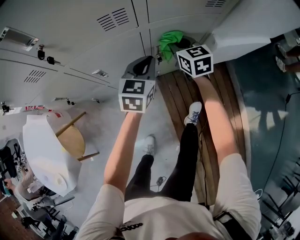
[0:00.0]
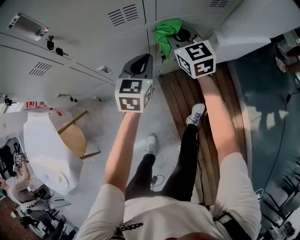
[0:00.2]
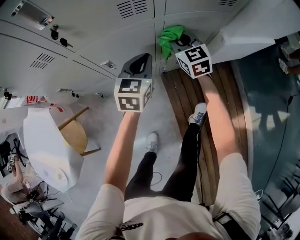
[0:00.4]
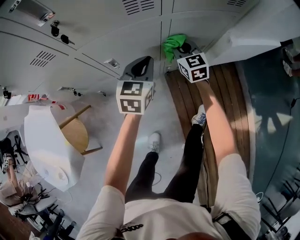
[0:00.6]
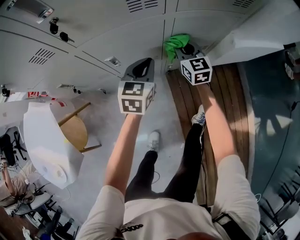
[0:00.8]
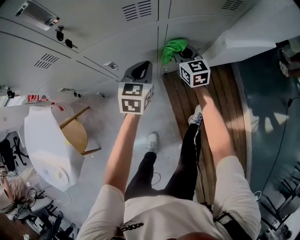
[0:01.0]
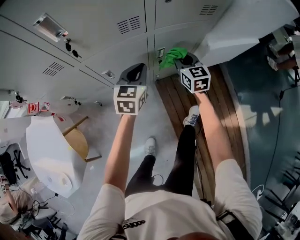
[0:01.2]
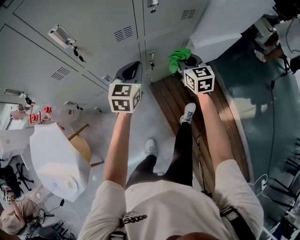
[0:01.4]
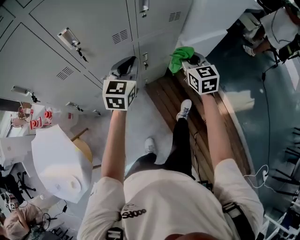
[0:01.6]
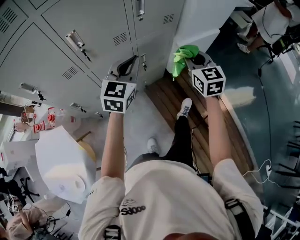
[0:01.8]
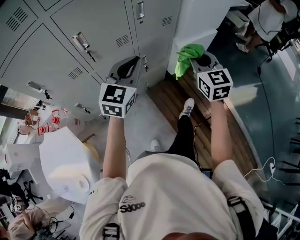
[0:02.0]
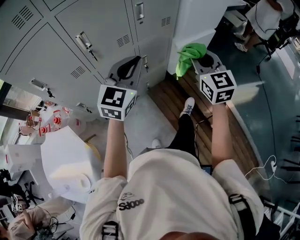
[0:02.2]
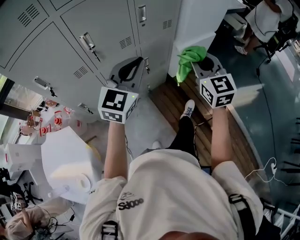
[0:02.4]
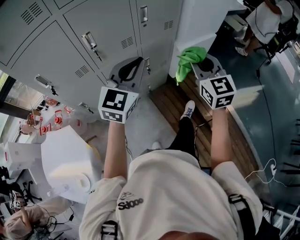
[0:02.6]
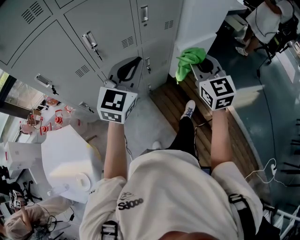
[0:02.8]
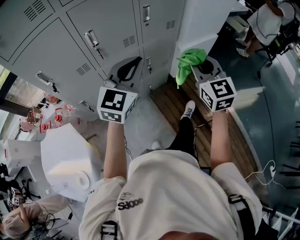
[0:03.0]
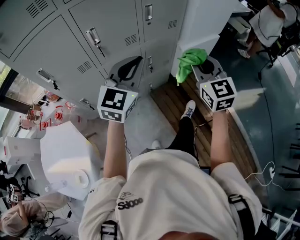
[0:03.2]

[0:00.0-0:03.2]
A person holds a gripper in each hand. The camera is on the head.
0:00.0 to 0:01.6: The right gripper goes up and down, roughly 25 cm each way, reversing 2 times; the left gripper travels upward and backward by approximately 20 cm.
0:01.6 to 0:03.2: The right gripper moves backward and upward, approximately 25 cm. The left gripper travels upward and backward by about 25 cm.

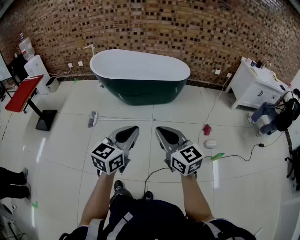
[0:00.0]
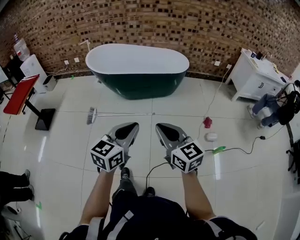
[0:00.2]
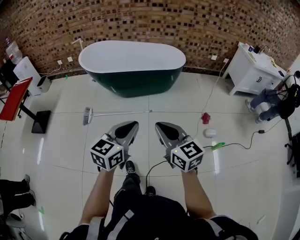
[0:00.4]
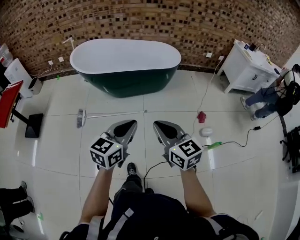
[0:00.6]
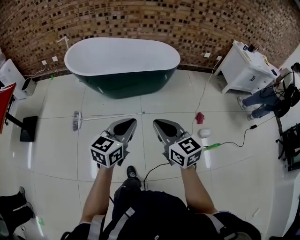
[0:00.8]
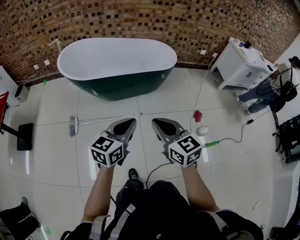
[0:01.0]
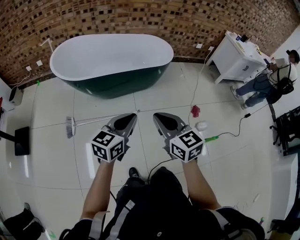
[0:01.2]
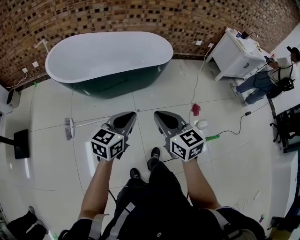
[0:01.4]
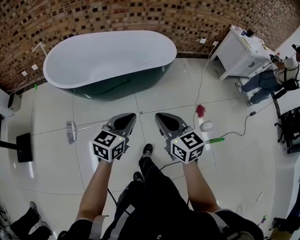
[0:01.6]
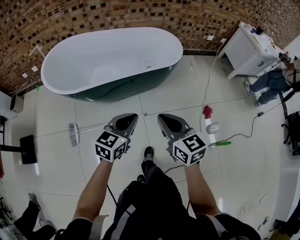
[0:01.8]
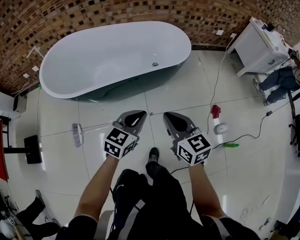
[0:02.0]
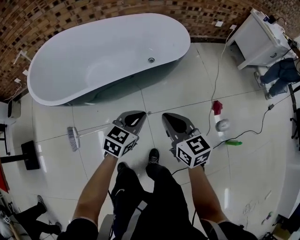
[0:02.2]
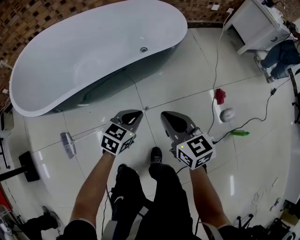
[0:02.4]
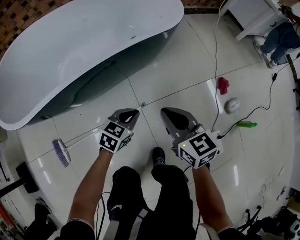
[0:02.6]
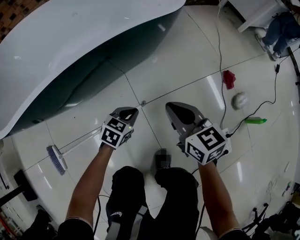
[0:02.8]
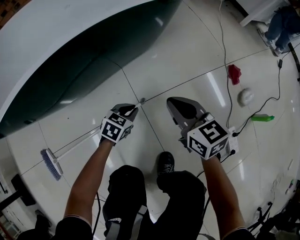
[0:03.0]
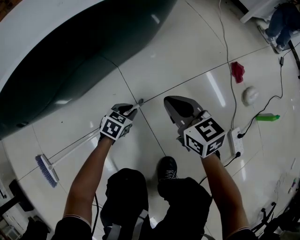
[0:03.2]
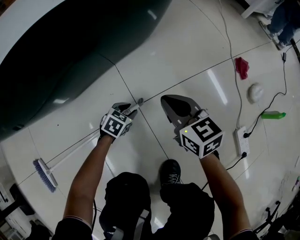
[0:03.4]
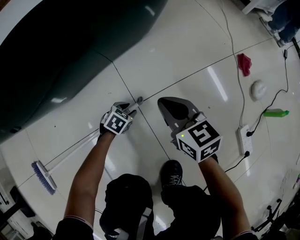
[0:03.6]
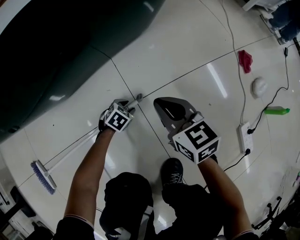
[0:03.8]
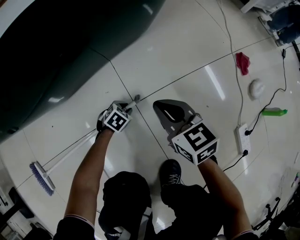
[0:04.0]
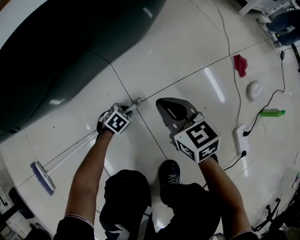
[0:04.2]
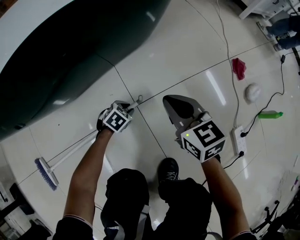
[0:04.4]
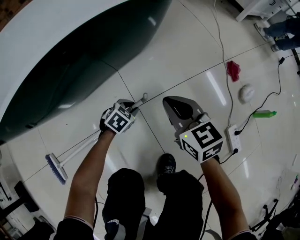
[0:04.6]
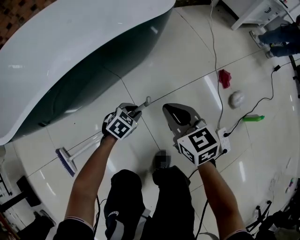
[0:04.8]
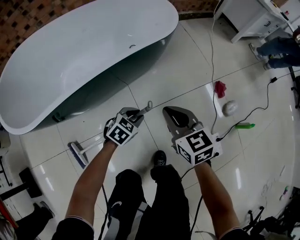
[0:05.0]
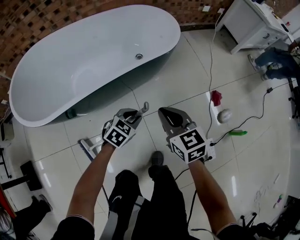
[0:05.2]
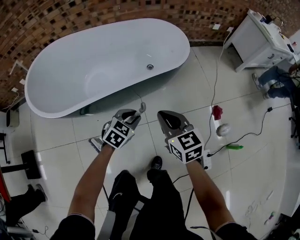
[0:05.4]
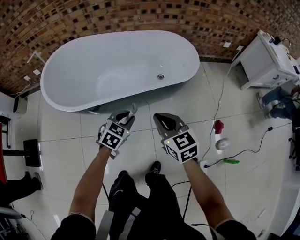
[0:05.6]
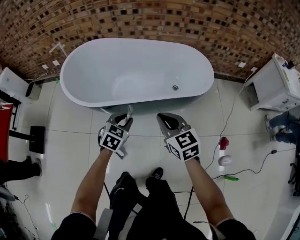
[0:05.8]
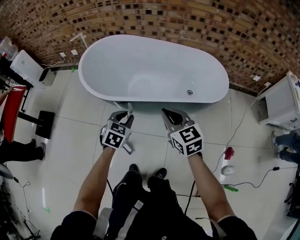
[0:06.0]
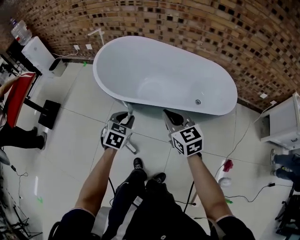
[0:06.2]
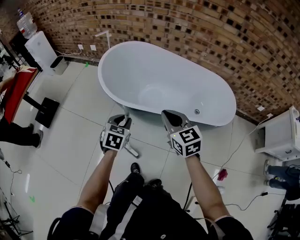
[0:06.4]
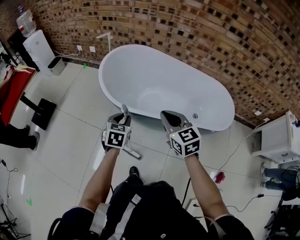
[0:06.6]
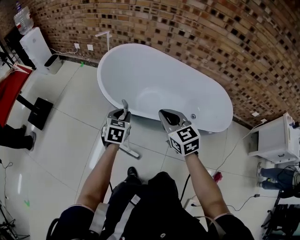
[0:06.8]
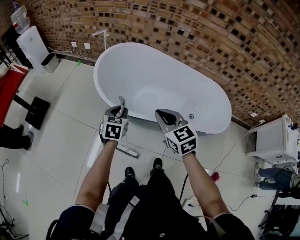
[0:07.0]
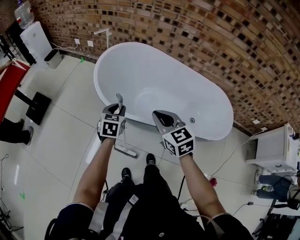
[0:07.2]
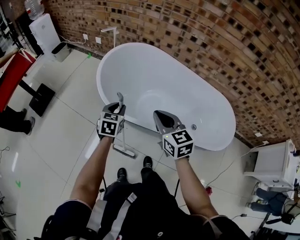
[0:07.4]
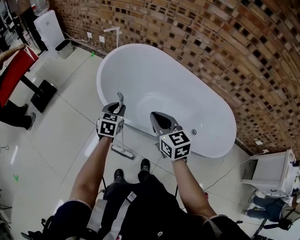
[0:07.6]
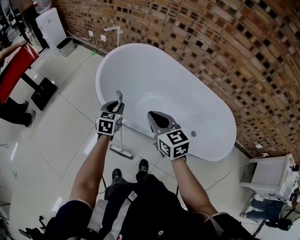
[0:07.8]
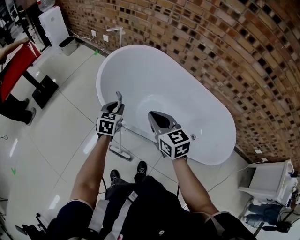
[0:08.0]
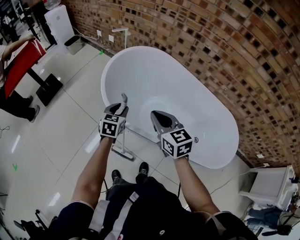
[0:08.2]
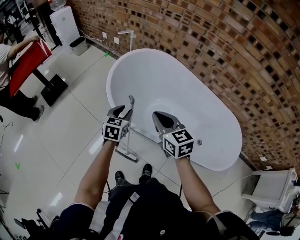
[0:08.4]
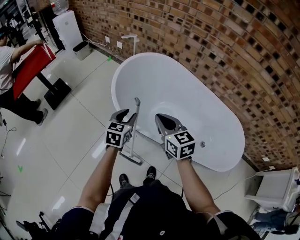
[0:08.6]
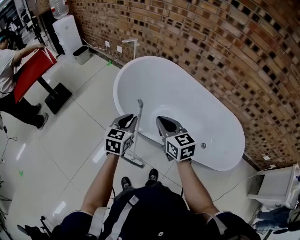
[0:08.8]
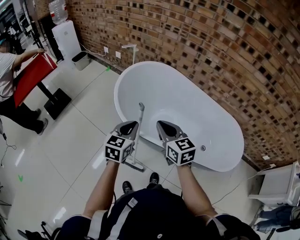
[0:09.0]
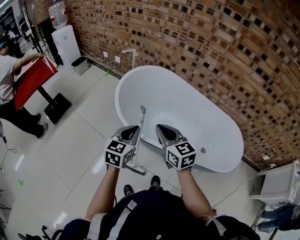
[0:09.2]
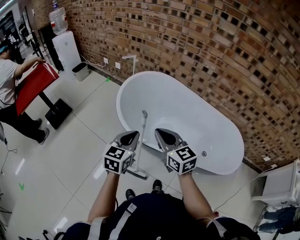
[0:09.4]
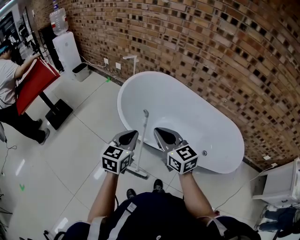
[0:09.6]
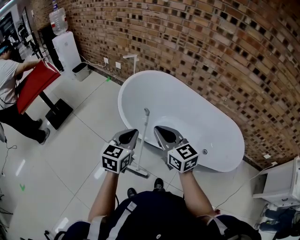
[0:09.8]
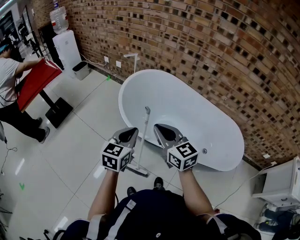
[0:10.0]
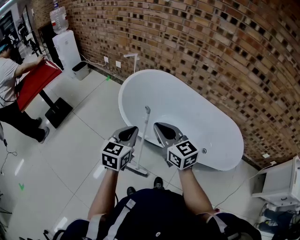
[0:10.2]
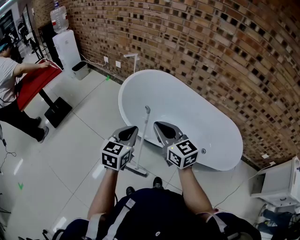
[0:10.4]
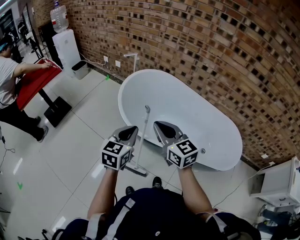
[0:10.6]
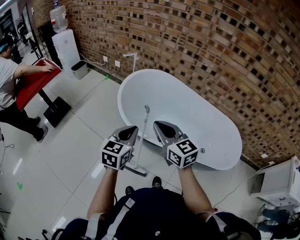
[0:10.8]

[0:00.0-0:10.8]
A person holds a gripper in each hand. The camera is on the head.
0:00.0 to 0:01.6: The grippers both shift forward by about 35 cm. The right gripper changes its angle by roughly 20 degrees.
0:01.6 to 0:03.0: The right gripper shifts roughly 50 cm downward and forward, while the left gripper shifts approximately 60 cm downward, and changes its angle by approximately 40 degrees.
0:03.0 to 0:04.6: The left gripper moves roughly 25 cm downward and comes back, while the right gripper goes downward and returns, about 15 cm each way.
0:04.6 to 0:06.2: Both grippers travel together upward, roughly 50 cm. The left gripper rotates approximately 60 degrees. The right gripper rotates some 40 degrees.
0:06.2 to 0:07.8: Both grippers move forward, about 20 cm. The left gripper rotates approximately 30 degrees.
0:07.8 to 0:09.2: The right gripper travels to the left by approximately 5 cm; the left gripper heads upward and backward, covering about 15 cm, and closes up.
0:09.2 to 0:10.8: The right gripper ends up approximately 5 cm from where it was; the left gripper changes place by roughly 5 cm.

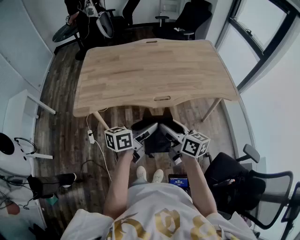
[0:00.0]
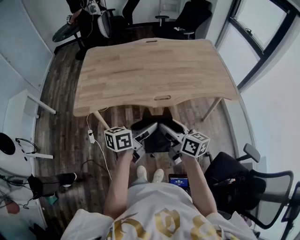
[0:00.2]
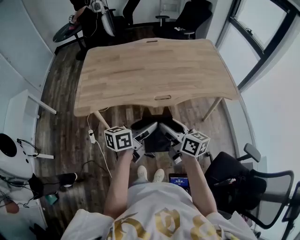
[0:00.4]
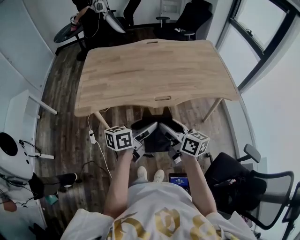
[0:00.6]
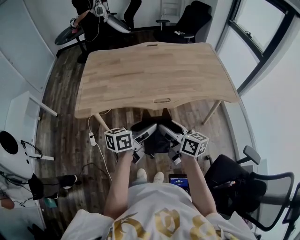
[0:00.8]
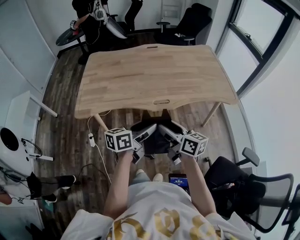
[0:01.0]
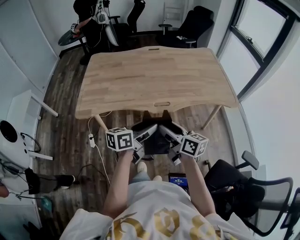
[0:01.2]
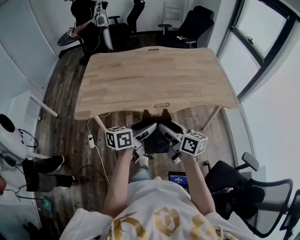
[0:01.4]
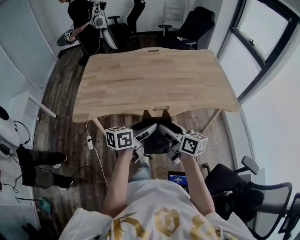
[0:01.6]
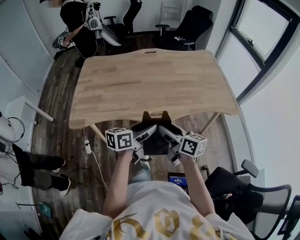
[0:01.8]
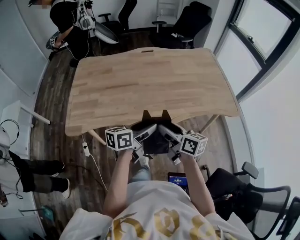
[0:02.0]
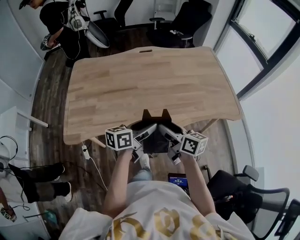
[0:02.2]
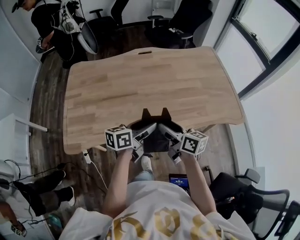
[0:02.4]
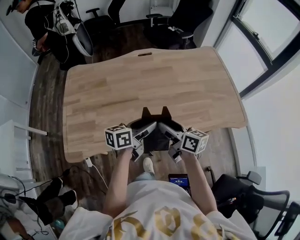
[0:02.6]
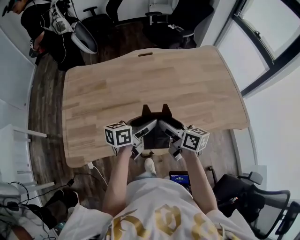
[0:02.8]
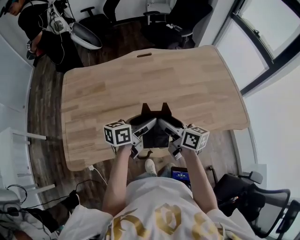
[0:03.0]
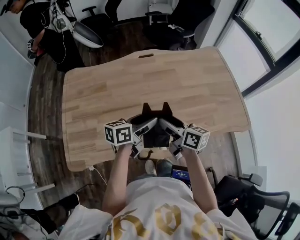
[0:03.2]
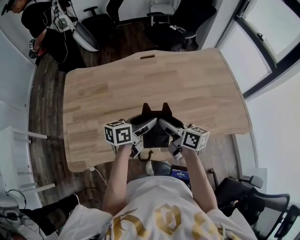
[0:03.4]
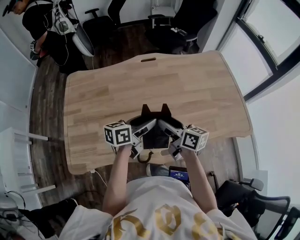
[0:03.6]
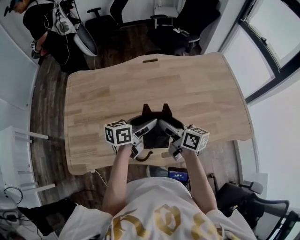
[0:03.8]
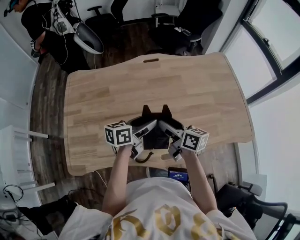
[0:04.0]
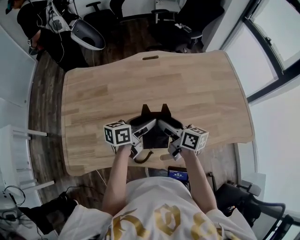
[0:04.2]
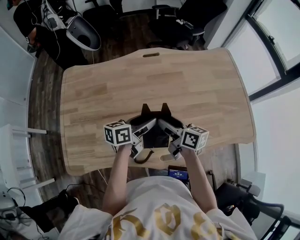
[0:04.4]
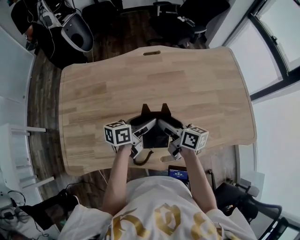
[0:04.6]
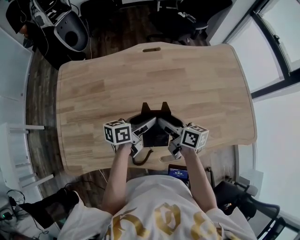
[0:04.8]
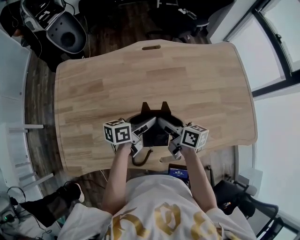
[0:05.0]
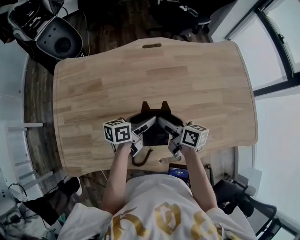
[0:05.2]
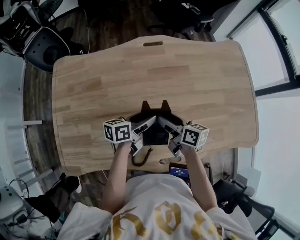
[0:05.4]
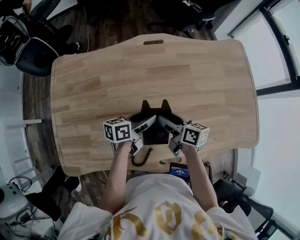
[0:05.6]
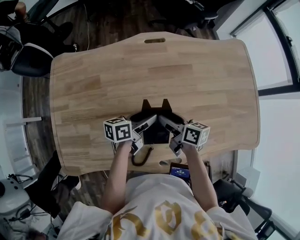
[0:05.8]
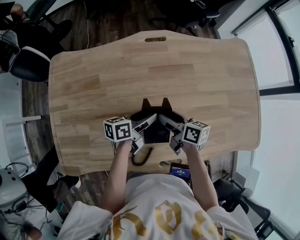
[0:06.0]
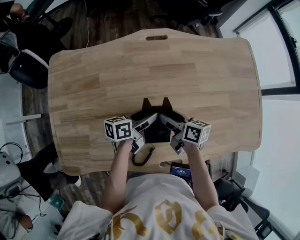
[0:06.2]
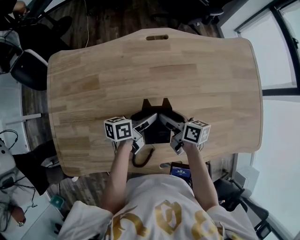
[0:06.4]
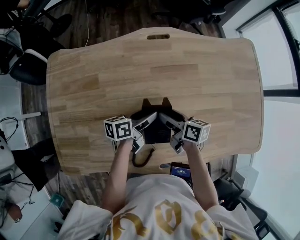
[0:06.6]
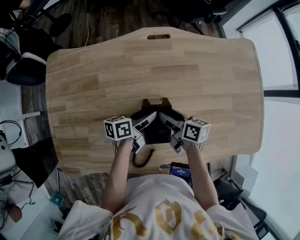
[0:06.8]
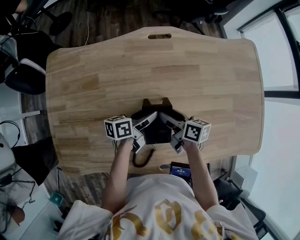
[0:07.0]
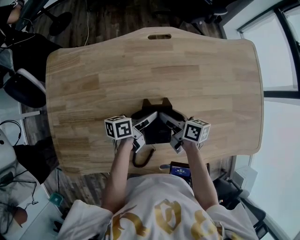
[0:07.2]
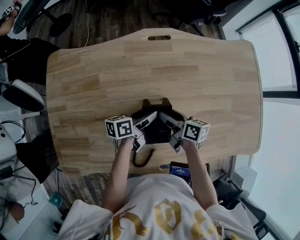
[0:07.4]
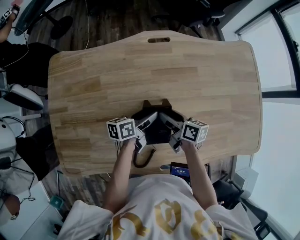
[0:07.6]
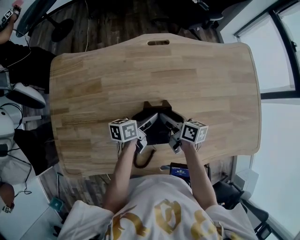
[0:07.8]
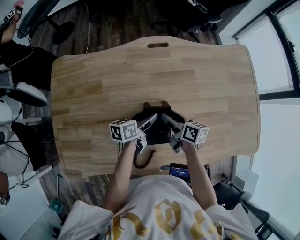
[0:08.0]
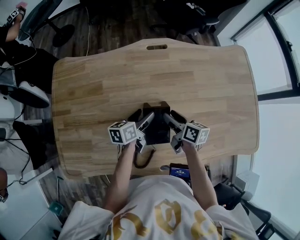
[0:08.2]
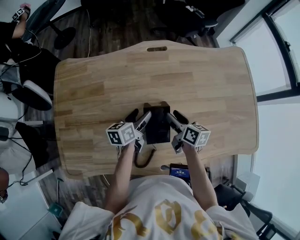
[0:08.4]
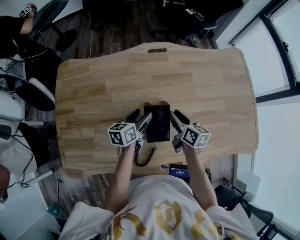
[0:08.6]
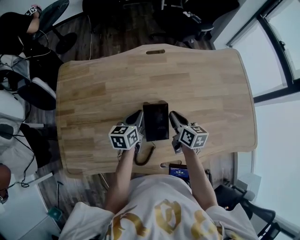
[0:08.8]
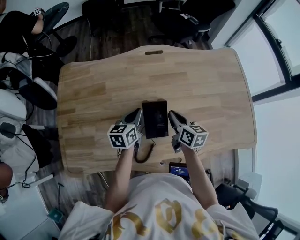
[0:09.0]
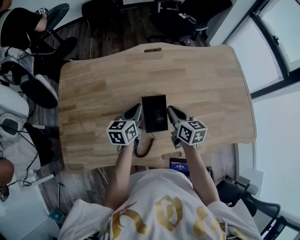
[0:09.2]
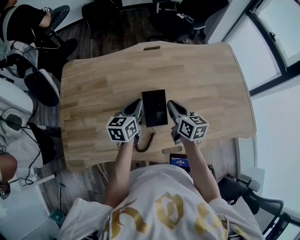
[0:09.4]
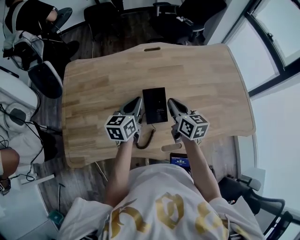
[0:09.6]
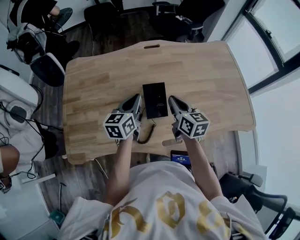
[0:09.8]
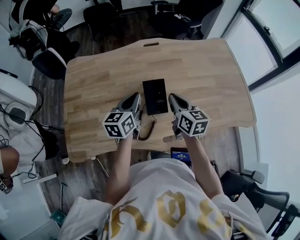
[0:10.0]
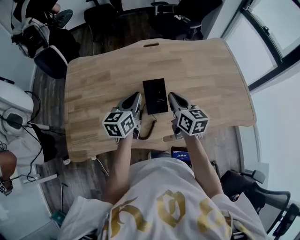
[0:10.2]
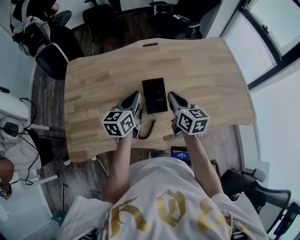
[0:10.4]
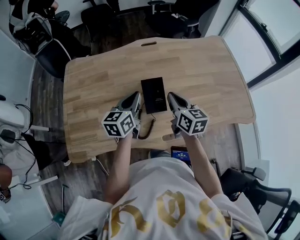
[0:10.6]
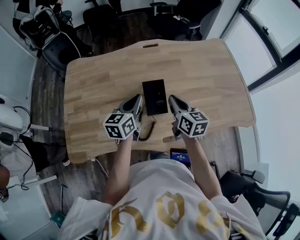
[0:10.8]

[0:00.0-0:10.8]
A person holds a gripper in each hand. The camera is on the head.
0:00.0 to 0:01.6: The grippers stay close to where they were, moving slightly.
0:01.6 to 0:03.0: Both grippers travel together forward, some 35 cm.
0:03.0 to 0:04.6: The grippers both shift forward and downward by about 10 cm.
0:04.6 to 0:06.2: Both grippers move downward and forward, about 15 cm.
0:06.2 to 0:07.8: The grippers stay close to where they were, moving slightly.
0:07.8 to 0:09.2: The left gripper shifts approximately 10 cm upward, swivels about 30 degrees, and closes up; the right gripper travels upward and backward by some 10 cm, turns by roughly 30 degrees, and closes.
0:09.2 to 0:10.8: The two grippers go roughly 10 cm backward and upward.
